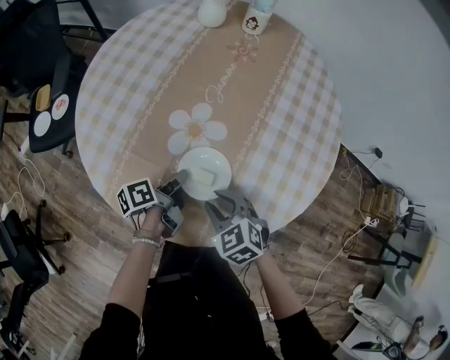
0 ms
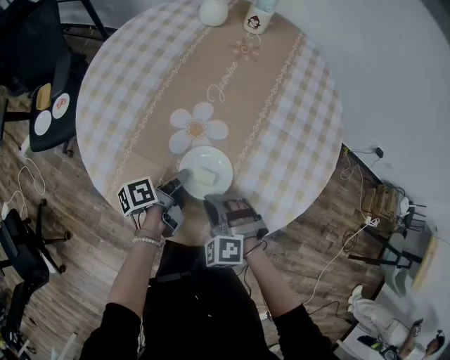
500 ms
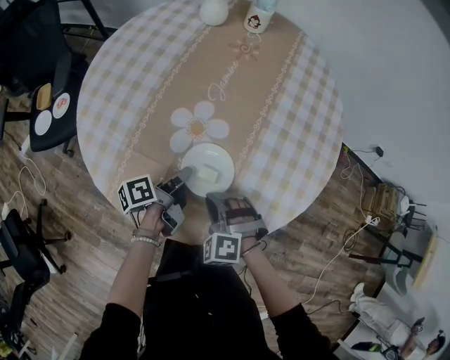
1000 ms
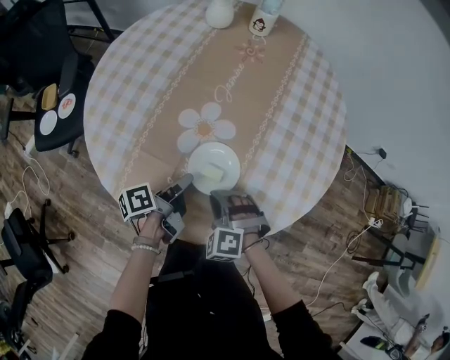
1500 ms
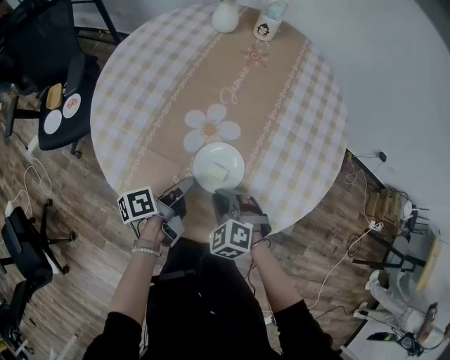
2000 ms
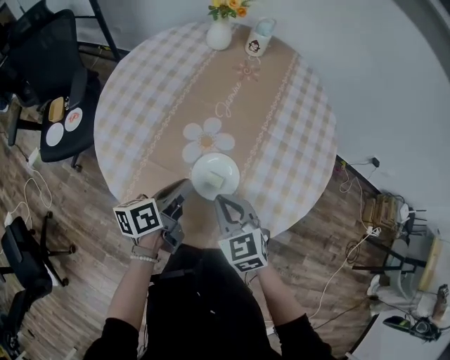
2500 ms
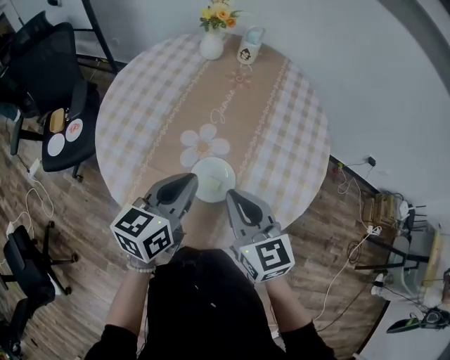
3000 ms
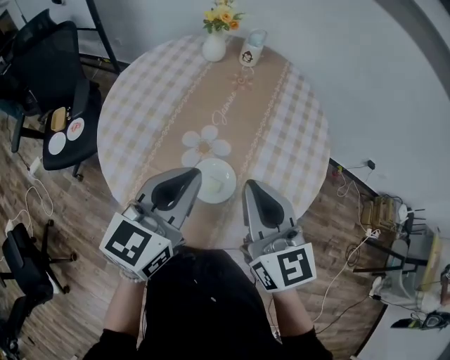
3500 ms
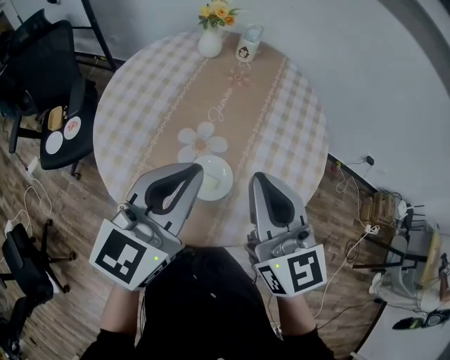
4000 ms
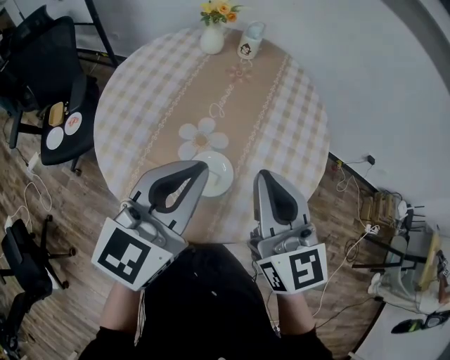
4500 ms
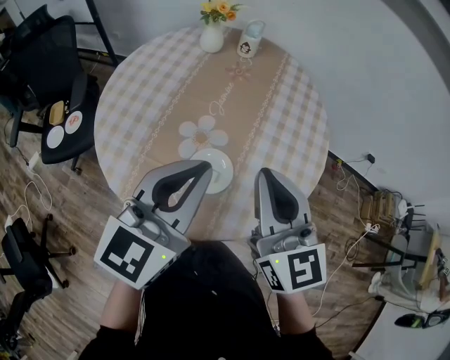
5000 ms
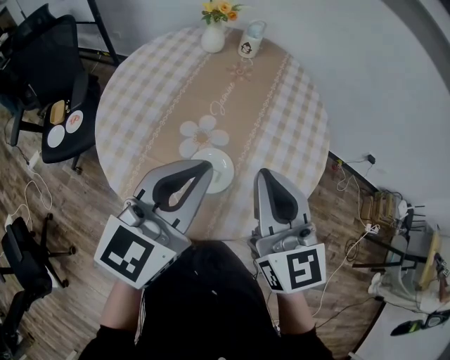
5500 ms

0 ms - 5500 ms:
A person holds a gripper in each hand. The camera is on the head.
0 ms - 2000 ms: The right gripper swivels some 20 degrees.
2000 ms - 3500 ms: The right gripper is displaced upward by roughly 30 cm, and angles its fingers upward, by about 50 degrees.

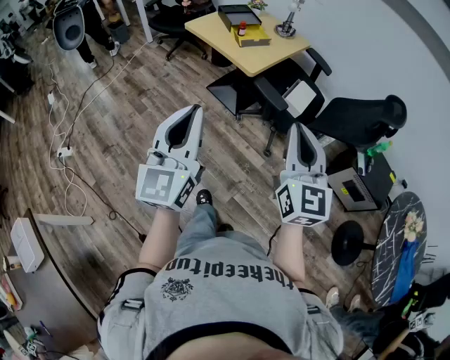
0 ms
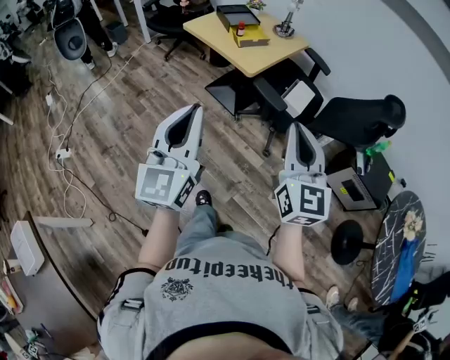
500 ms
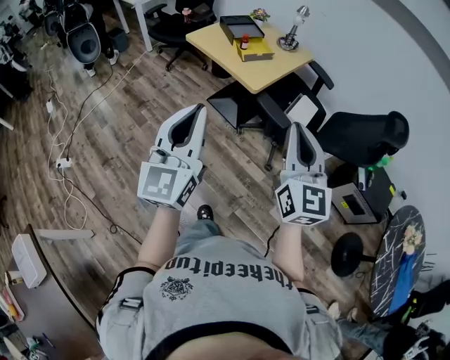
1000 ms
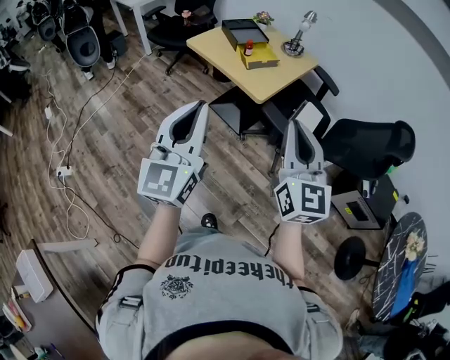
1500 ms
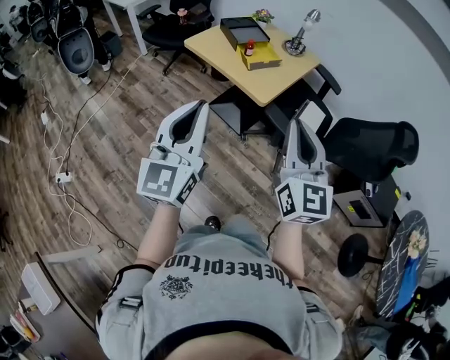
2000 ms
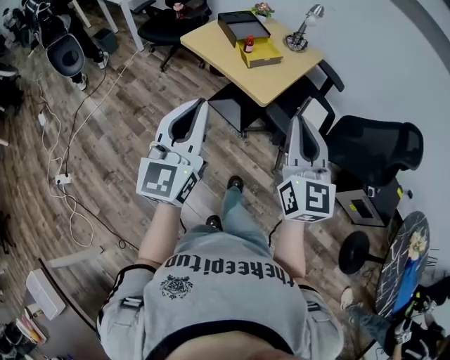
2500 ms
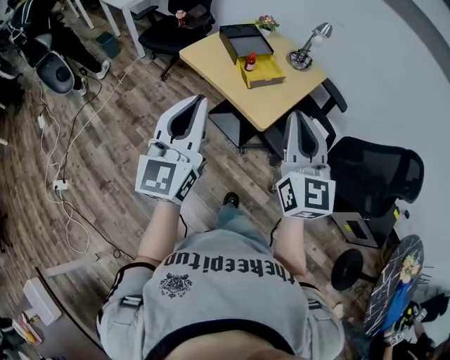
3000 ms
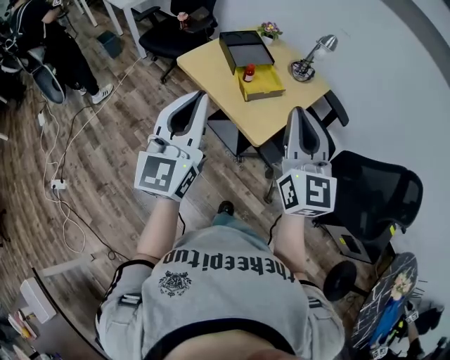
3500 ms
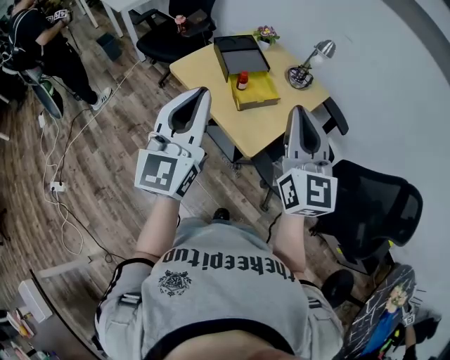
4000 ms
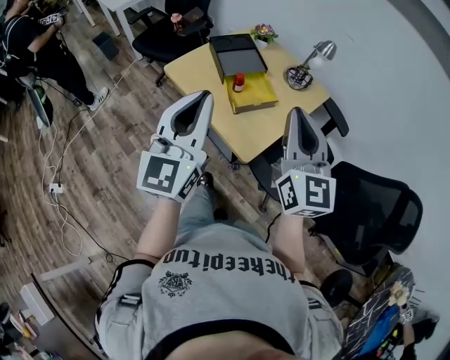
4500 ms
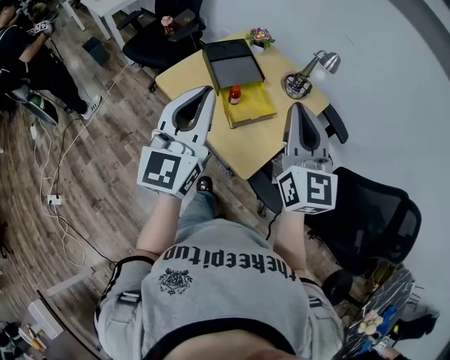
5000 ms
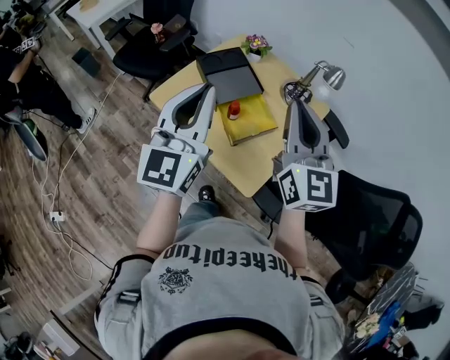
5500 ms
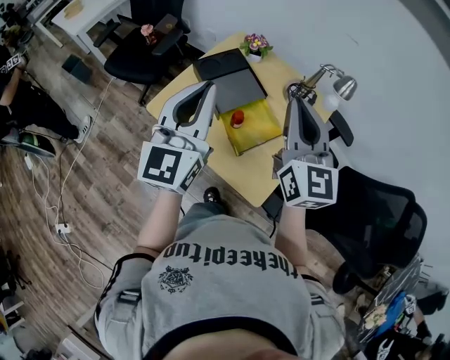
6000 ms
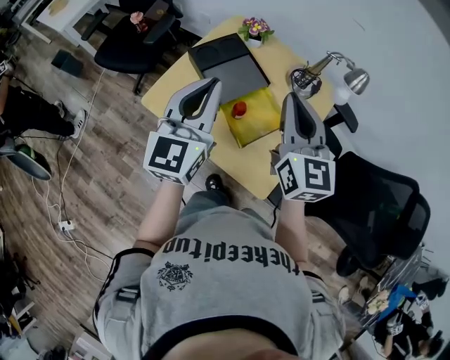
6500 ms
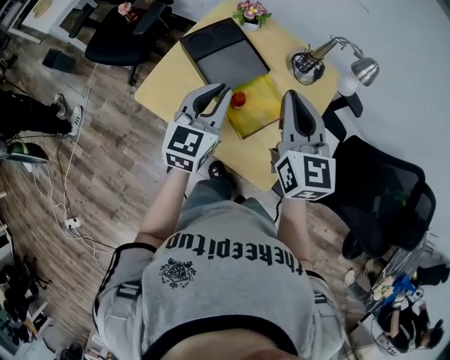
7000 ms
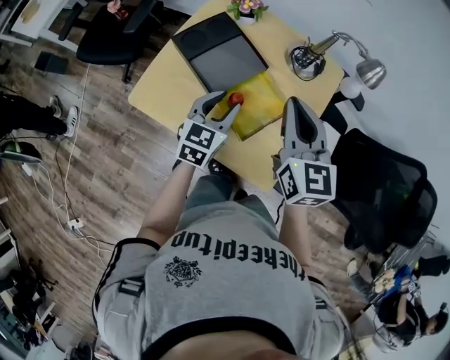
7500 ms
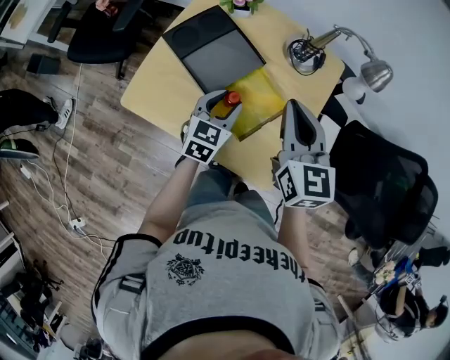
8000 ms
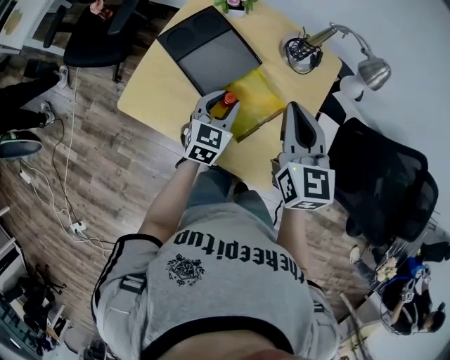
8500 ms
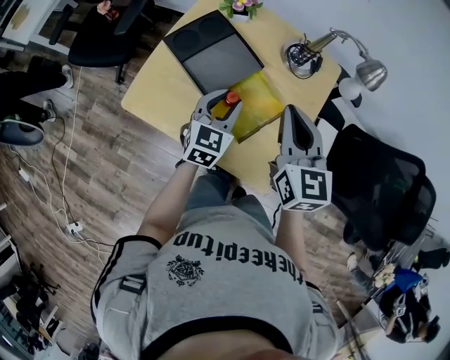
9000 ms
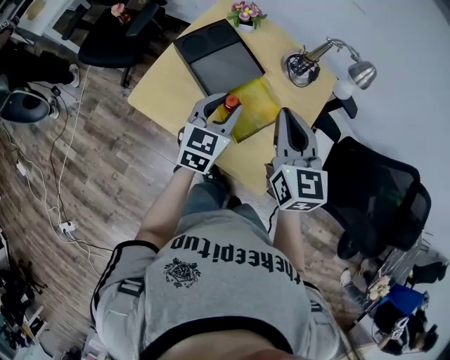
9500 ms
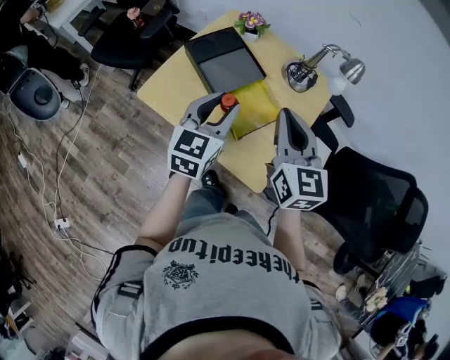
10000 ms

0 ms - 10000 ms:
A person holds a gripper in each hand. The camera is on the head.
0 ms - 2000 ms: Both grippers move forward and to the left, some 20 cm.
2000 ms - 4000 ms: The grippers both shift forward by about 30 cm.
4000 ms - 6000 ms: Both grippers travel together forward, some 30 cm.
6000 ms - 8000 ms: The right gripper moves downward, about 15 cm, and rotates some 20 degrees. The left gripper travels downward by about 30 cm, tips its fingers downward by approximately 40 degrees, and opens.
8000 ms - 10000 ms: The left gripper goes approximately 15 cm upward and backward. The right gripper is displaced backward and upward by roughly 10 cm.

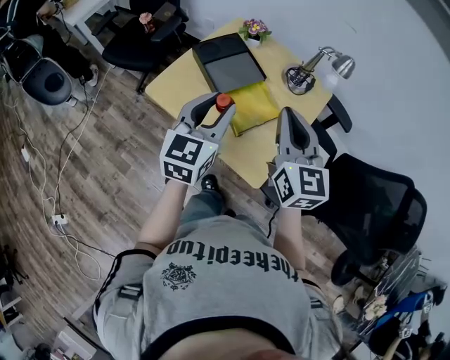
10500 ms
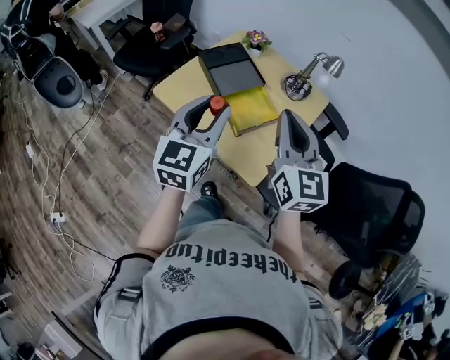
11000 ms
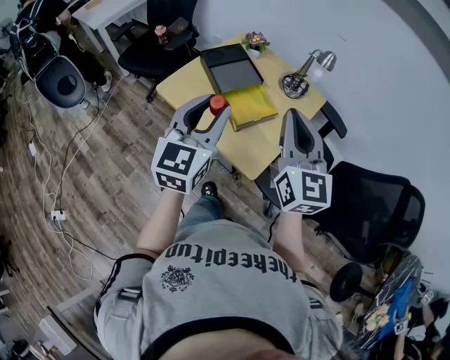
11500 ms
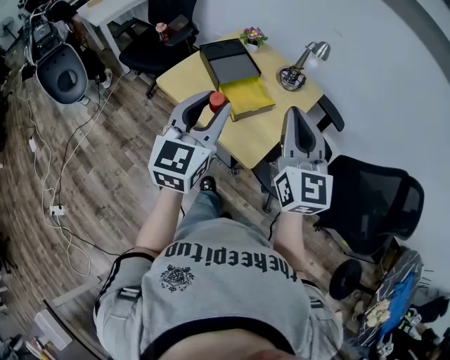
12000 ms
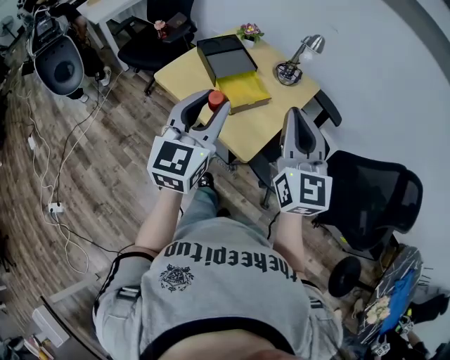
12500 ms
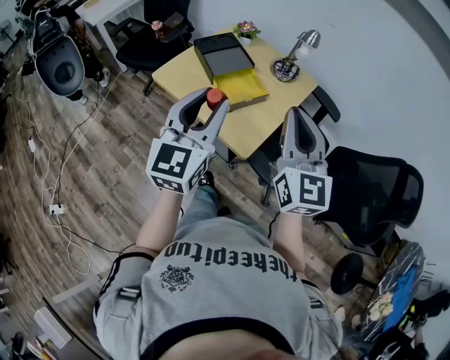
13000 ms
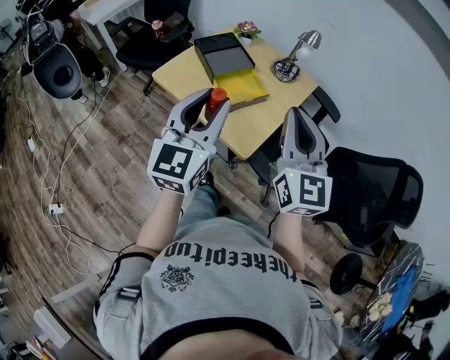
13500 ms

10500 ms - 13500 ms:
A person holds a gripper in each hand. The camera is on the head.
10500 ms - 12000 ms: The grippers both shift backward and upward by about 15 cm.
12000 ms - 13500 ms: The grippers make only small movements.

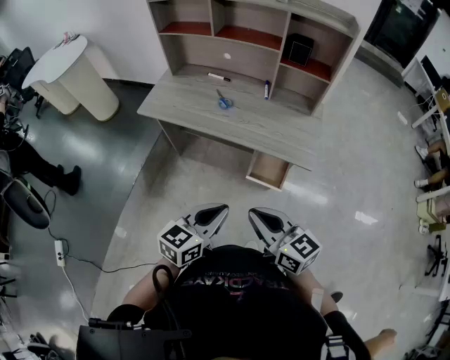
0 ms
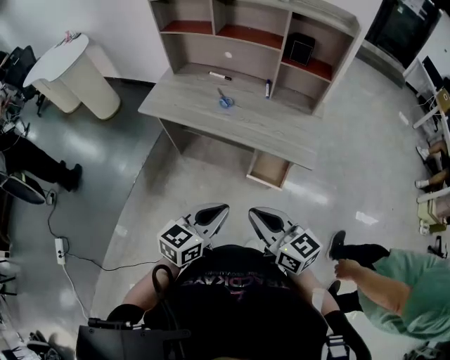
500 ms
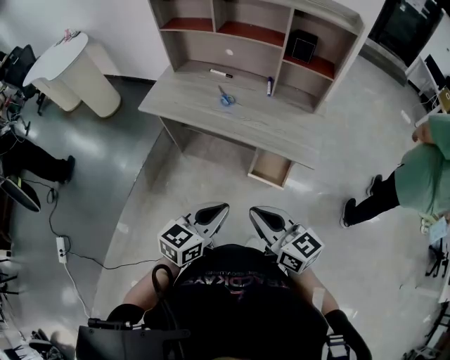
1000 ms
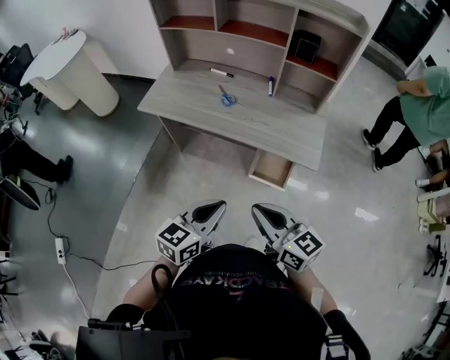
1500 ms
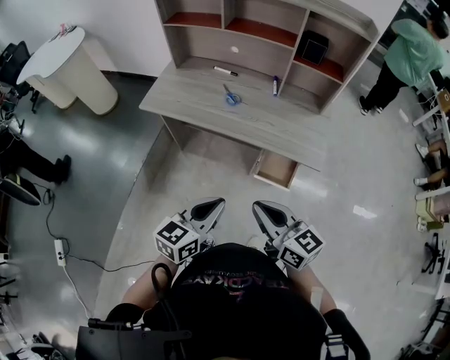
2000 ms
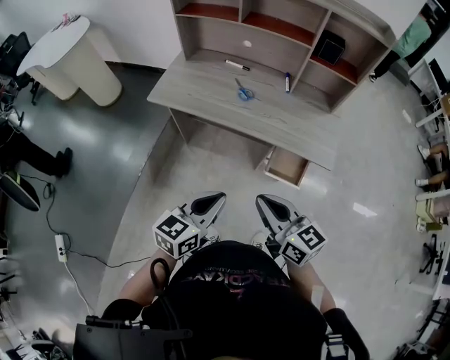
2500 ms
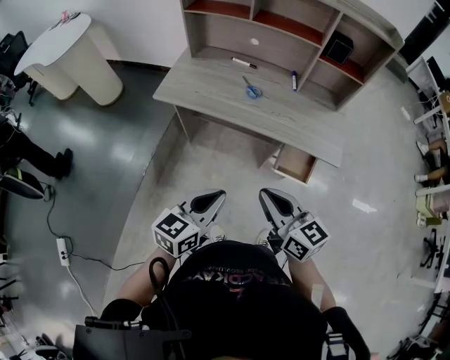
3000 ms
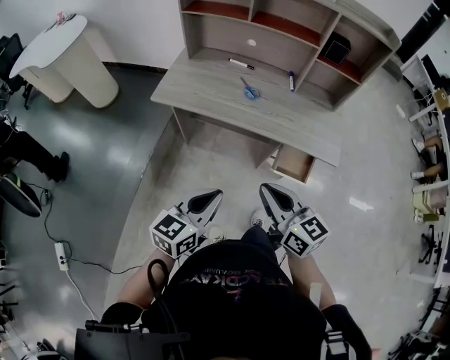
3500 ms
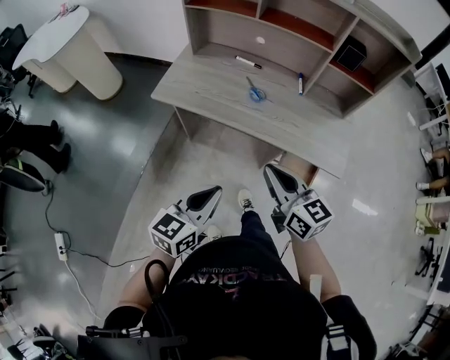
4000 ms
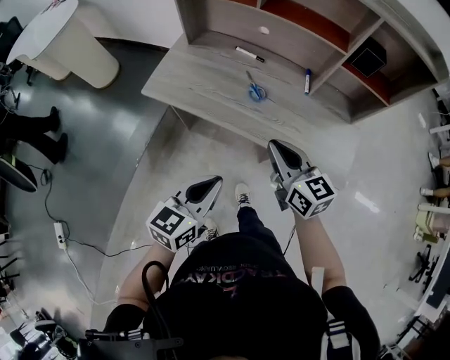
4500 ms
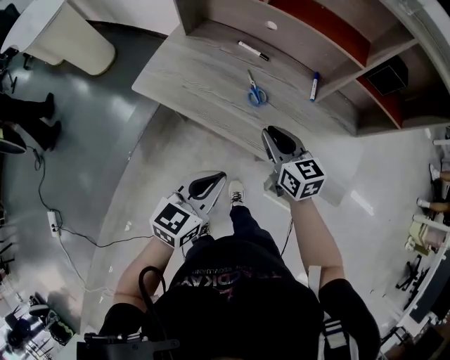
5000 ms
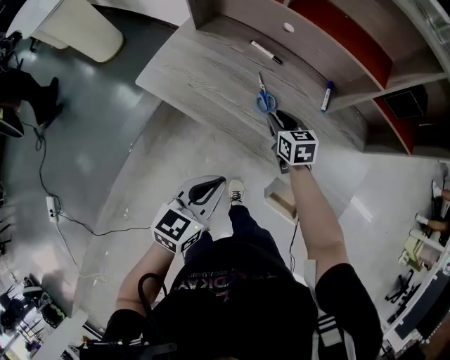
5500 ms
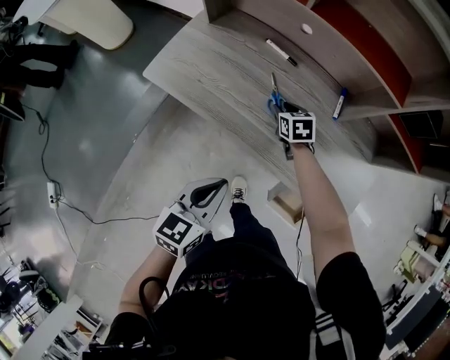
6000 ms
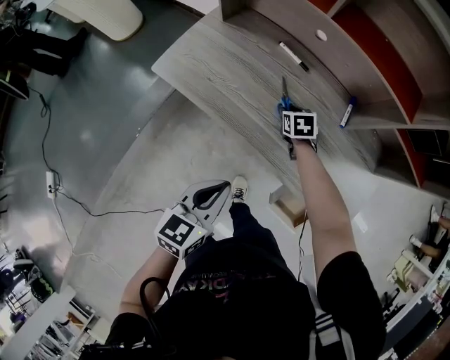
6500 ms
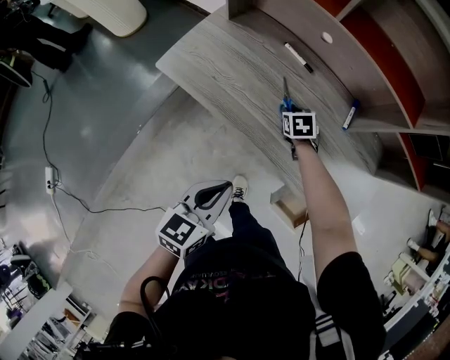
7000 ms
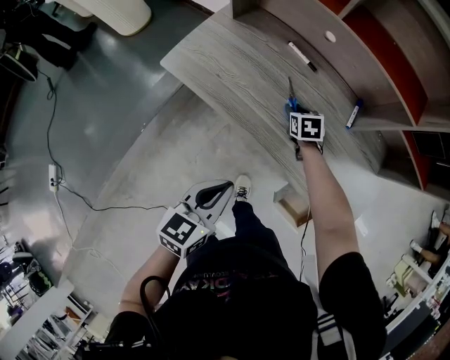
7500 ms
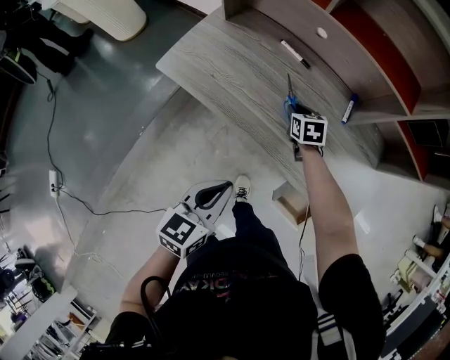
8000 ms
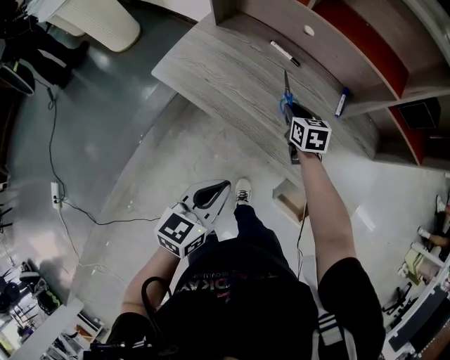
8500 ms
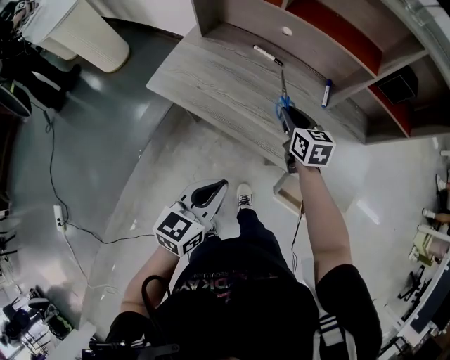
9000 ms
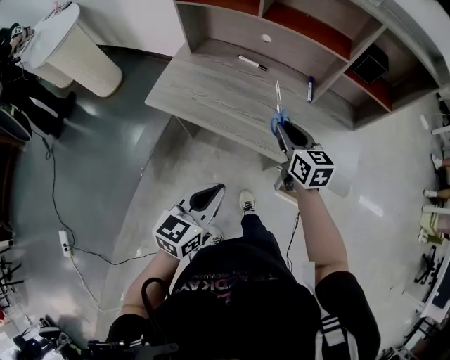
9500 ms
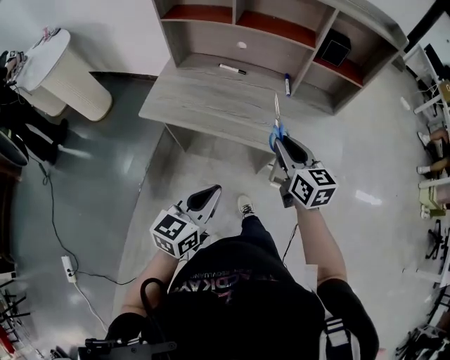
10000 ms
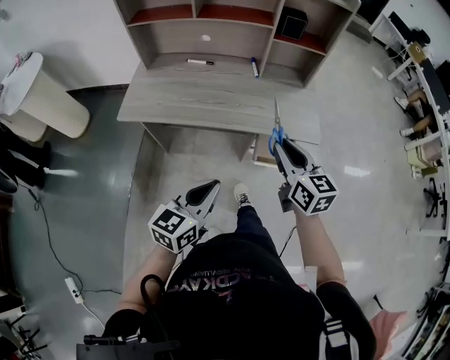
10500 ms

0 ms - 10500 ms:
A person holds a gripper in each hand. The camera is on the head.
0 ms - 2000 ms: The left gripper is displaced to the left by some 5 cm.
2000 ms - 4000 ms: The left gripper travels to the left and forward by approximately 10 cm. Meanwhile the right gripper goes about 15 cm forward and to the left.
4000 ms - 6500 ms: The left gripper heads forward and downward, covering some 15 cm. Meanwhile the right gripper moves forward and downward, some 50 cm, points its fingers some 50 degrees further downward, and opens.
6500 ms - 8500 ms: The right gripper goes about 10 cm upward.
8500 ms - 10500 ms: The left gripper ends up about 15 cm from where it was, and rotates about 30 degrees. The right gripper changes place by some 40 cm, and turns by roughly 40 degrees.
